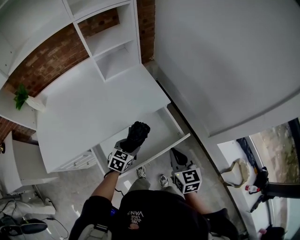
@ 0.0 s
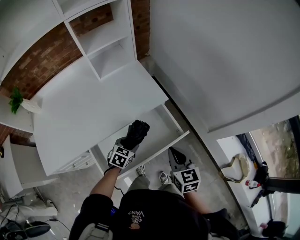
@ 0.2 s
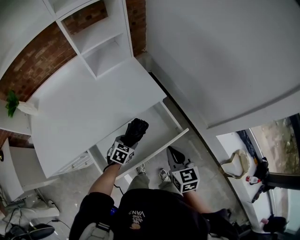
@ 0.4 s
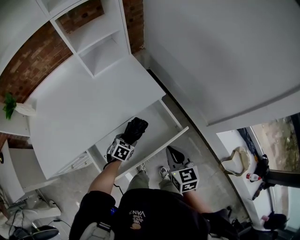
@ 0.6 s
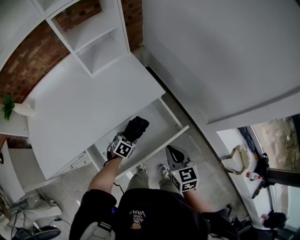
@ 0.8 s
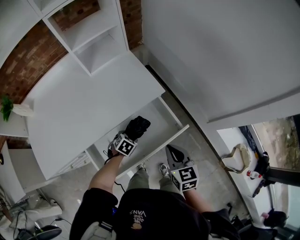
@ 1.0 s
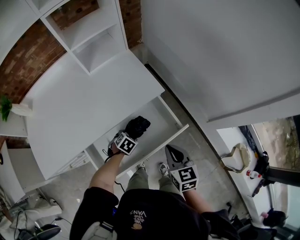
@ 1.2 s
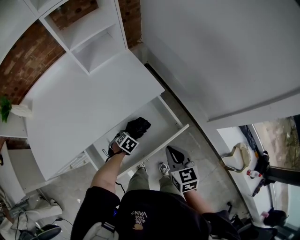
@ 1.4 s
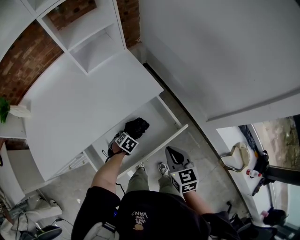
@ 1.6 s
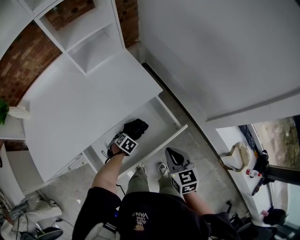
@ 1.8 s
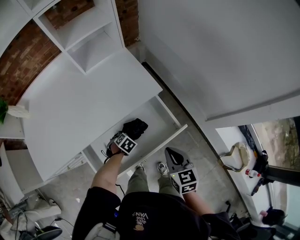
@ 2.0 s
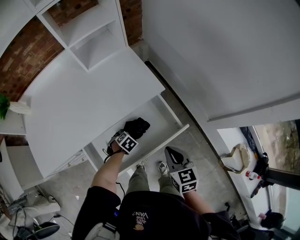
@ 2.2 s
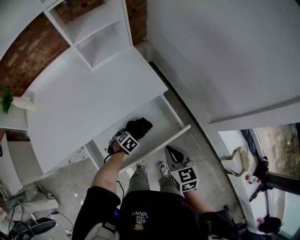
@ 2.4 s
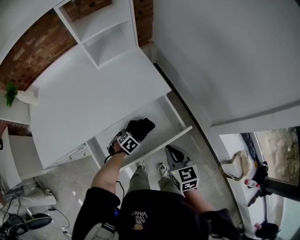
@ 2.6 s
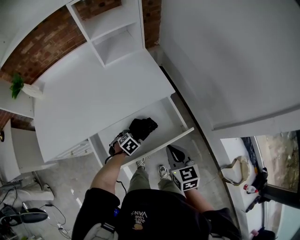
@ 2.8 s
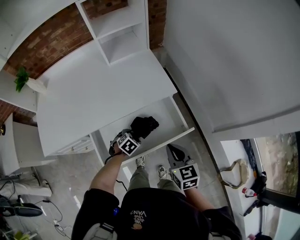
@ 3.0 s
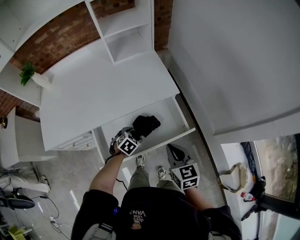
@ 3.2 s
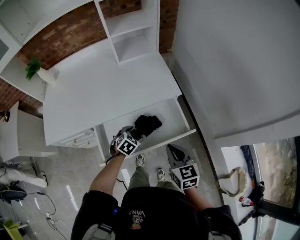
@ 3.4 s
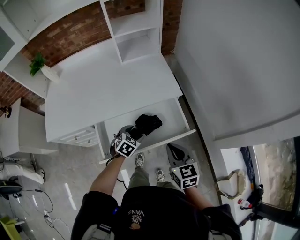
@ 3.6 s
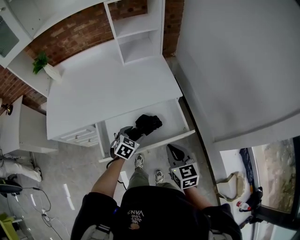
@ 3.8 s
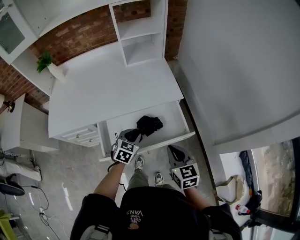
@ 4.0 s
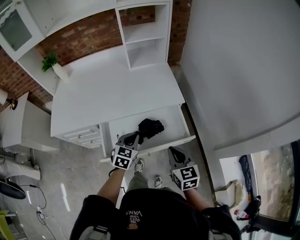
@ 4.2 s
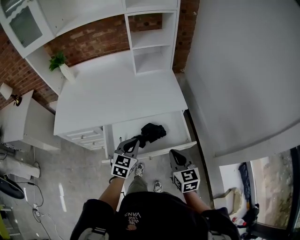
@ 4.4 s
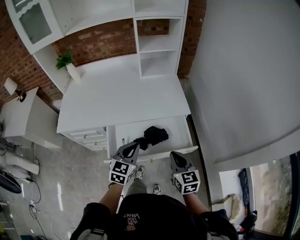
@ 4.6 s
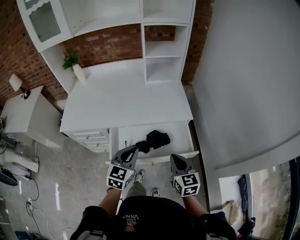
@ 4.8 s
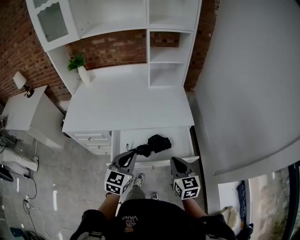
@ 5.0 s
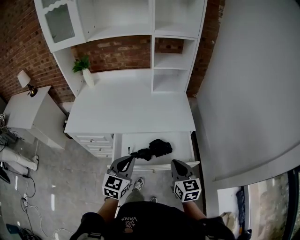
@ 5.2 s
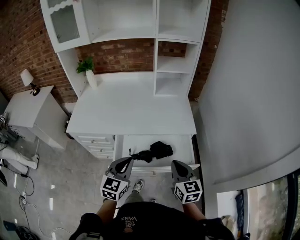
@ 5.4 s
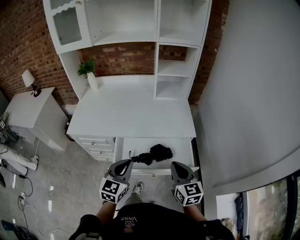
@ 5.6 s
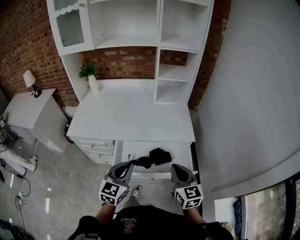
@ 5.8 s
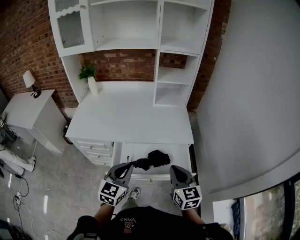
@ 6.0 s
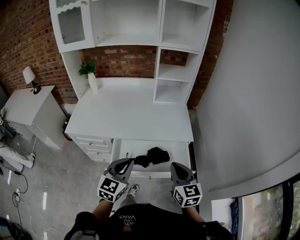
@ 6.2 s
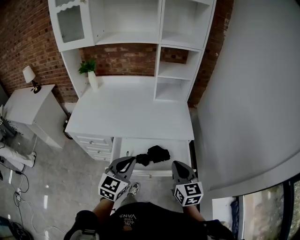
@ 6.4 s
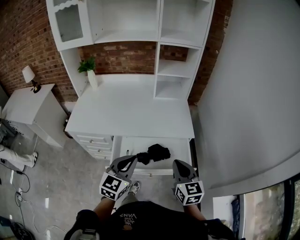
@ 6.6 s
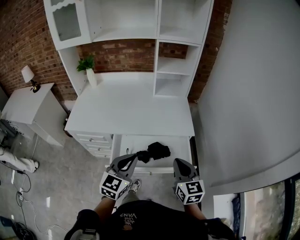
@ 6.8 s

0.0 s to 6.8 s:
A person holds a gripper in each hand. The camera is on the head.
0.0 to 1.4 s: The right gripper travels downward by some 5 cm. The left gripper moves downward, approximately 15 cm, and angles its fingers downward, by some 30 degrees.
1.4 to 2.8 s: There are only small adjustments of the grippers.
2.8 to 4.0 s: The left gripper heads upward, covering approximately 15 cm, angles its fingers upward, by about 30 degrees, and closes its fingers; the right gripper moves about 5 cm.
4.0 to 5.4 s: The left gripper moves upward, backward and to the left, approximately 25 cm, swivels approximately 30 degrees, and closes; the right gripper is displaced upward by roughly 5 cm.
5.4 to 6.8 s: The left gripper changes place by approximately 5 cm.

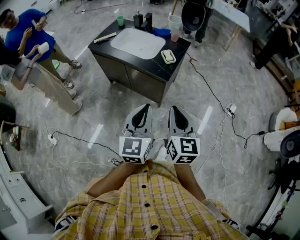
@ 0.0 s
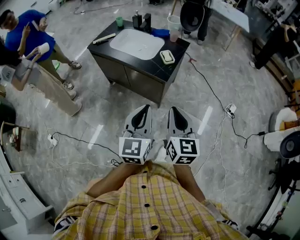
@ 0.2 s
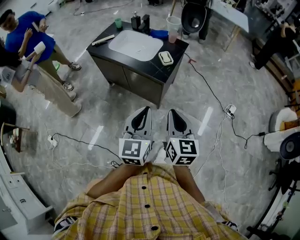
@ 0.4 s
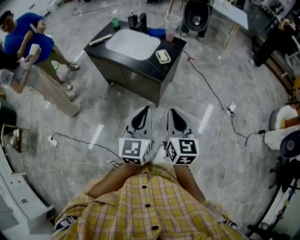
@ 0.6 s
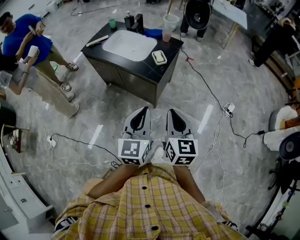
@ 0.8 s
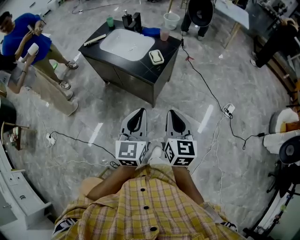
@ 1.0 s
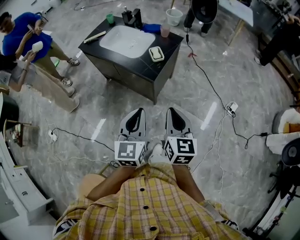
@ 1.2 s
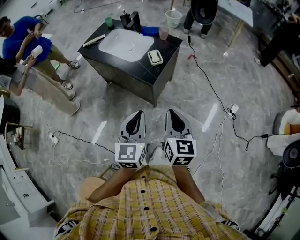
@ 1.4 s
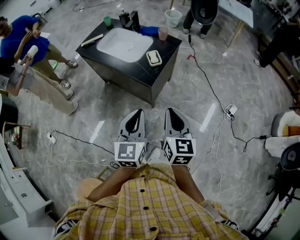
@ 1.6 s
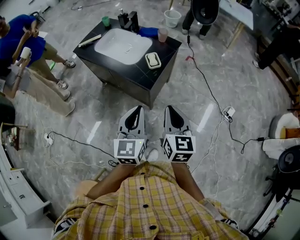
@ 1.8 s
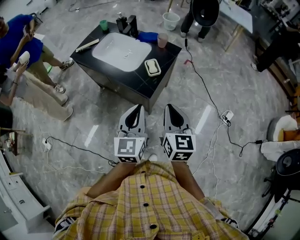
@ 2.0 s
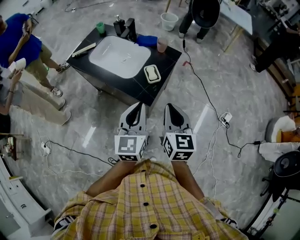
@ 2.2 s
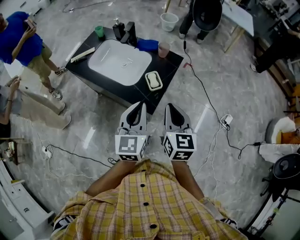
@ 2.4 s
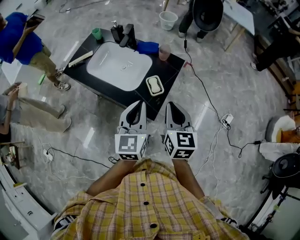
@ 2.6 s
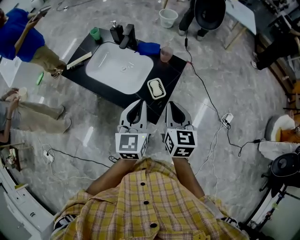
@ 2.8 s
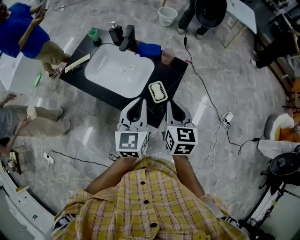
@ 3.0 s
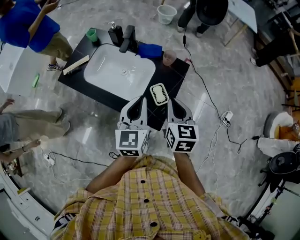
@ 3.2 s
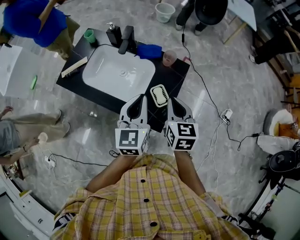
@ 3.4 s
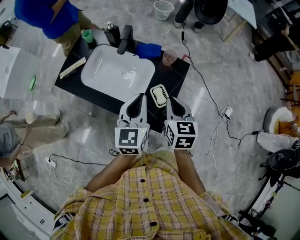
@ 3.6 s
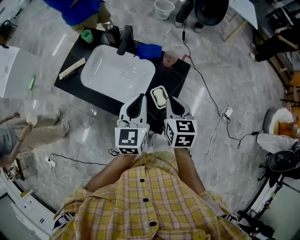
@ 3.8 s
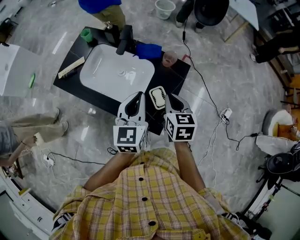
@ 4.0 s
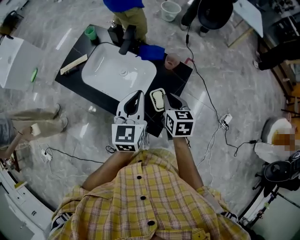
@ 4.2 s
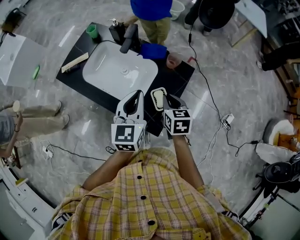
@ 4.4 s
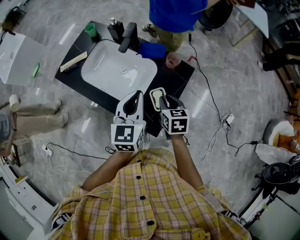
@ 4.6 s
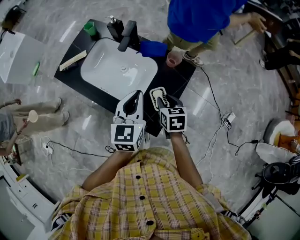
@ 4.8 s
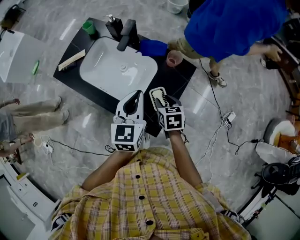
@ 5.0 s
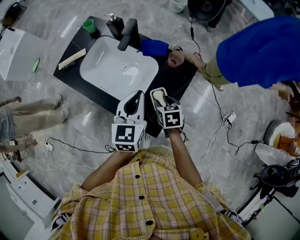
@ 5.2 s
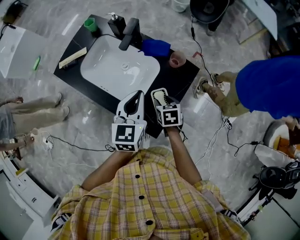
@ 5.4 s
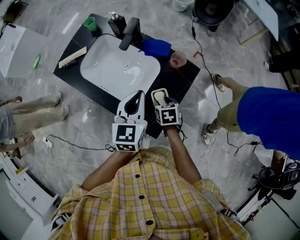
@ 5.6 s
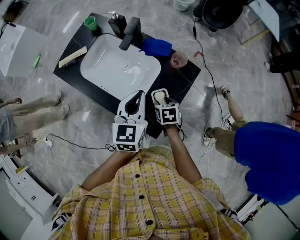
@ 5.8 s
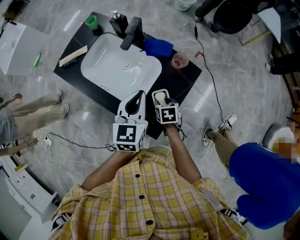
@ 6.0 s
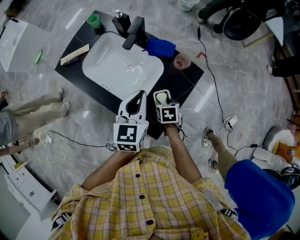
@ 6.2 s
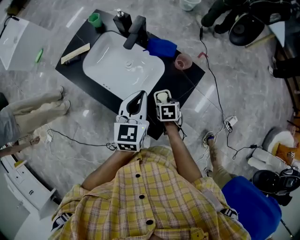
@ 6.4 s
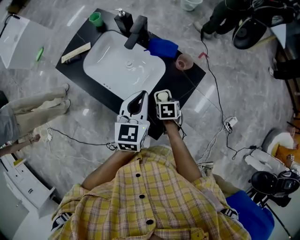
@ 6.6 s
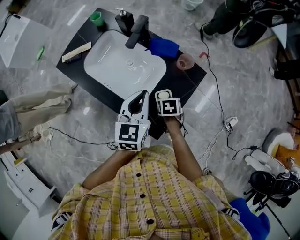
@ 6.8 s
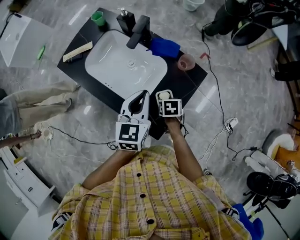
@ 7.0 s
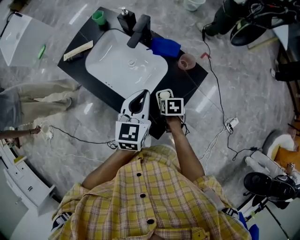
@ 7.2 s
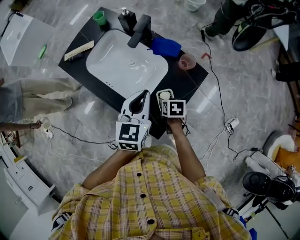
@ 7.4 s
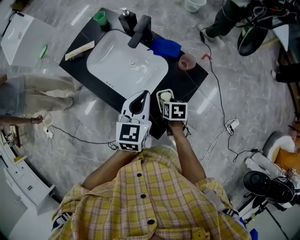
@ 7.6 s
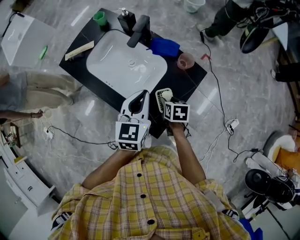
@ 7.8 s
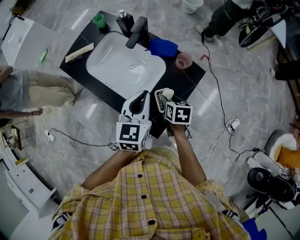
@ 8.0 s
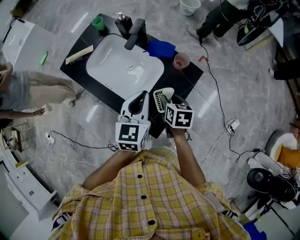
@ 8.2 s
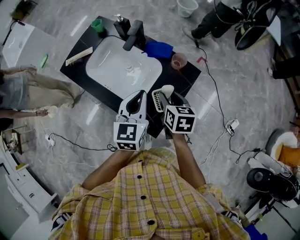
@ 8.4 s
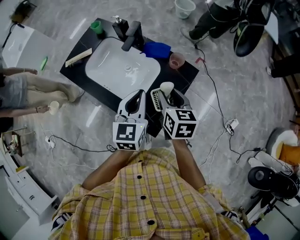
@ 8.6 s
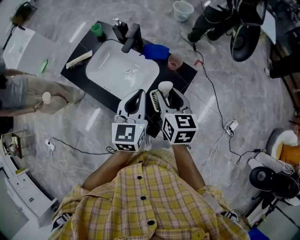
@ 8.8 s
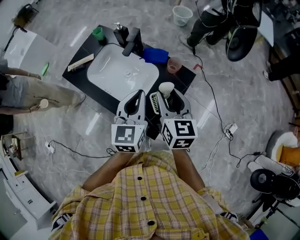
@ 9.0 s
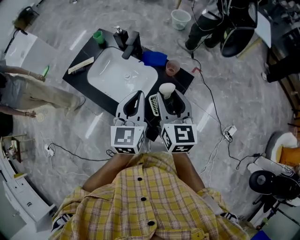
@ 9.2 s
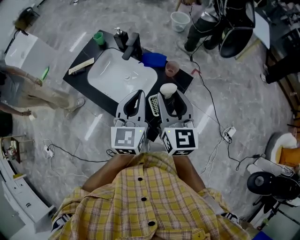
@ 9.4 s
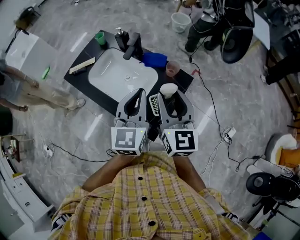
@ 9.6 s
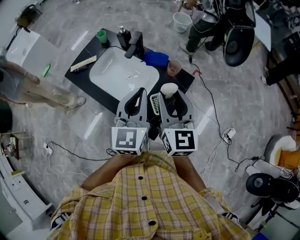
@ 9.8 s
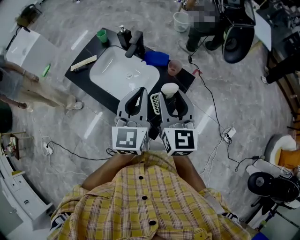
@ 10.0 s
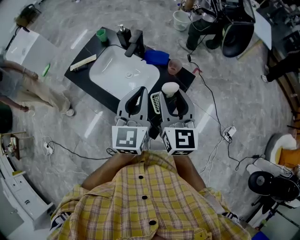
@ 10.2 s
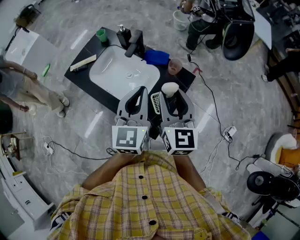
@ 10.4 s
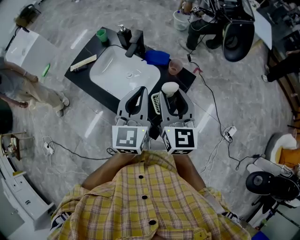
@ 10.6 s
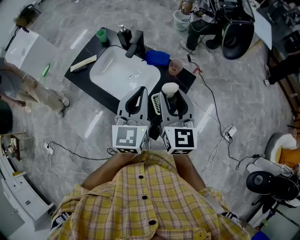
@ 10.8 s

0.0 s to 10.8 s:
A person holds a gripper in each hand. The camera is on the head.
0.0 to 1.6 s: The grippers both shift to the right and forward by about 15 cm.
1.6 to 3.0 s: The grippers both shift forward by roughly 35 cm.
3.0 to 4.6 s: The right gripper travels downward and forward by some 20 cm, and turns by about 20 degrees. The left gripper shifts about 10 cm forward.
4.6 to 6.2 s: The right gripper is displaced downward by some 15 cm, changes its angle by some 20 degrees, and opens its fingers. The left gripper moves about 5 cm.
6.2 to 7.8 s: The grippers move only a little.
7.8 to 9.2 s: The right gripper shifts roughly 30 cm upward, and points its fingers approximately 50 degrees further upward. The left gripper goes approximately 10 cm upward.
9.2 to 10.8 s: The grippers stay close to where they were, moving slightly.

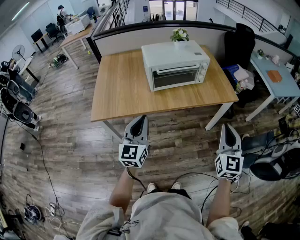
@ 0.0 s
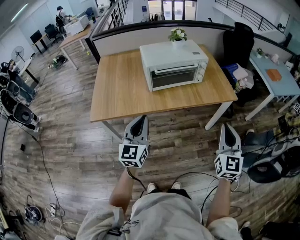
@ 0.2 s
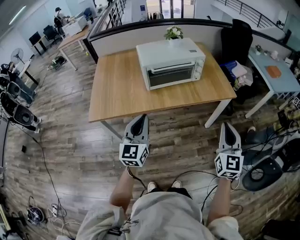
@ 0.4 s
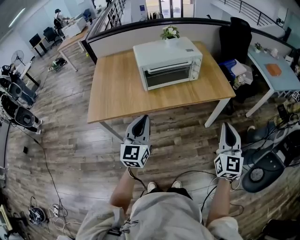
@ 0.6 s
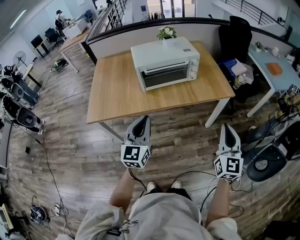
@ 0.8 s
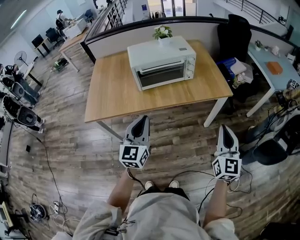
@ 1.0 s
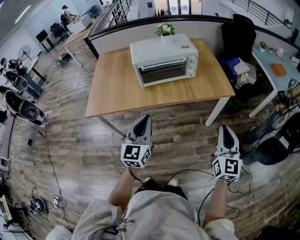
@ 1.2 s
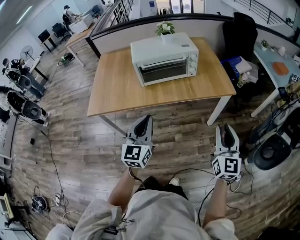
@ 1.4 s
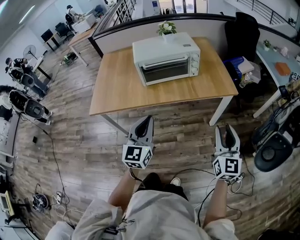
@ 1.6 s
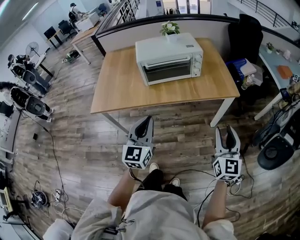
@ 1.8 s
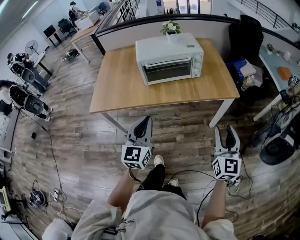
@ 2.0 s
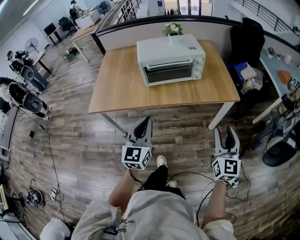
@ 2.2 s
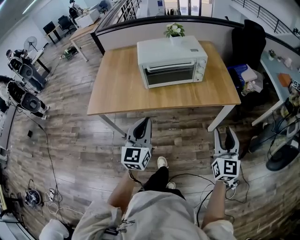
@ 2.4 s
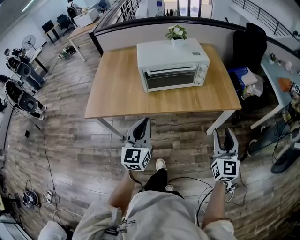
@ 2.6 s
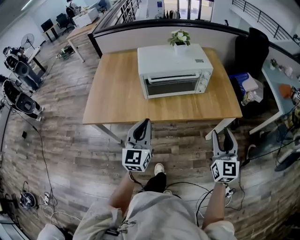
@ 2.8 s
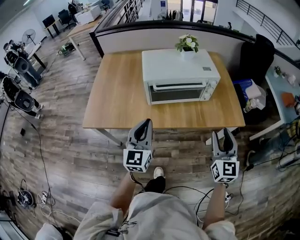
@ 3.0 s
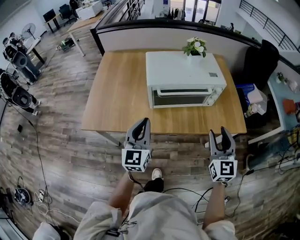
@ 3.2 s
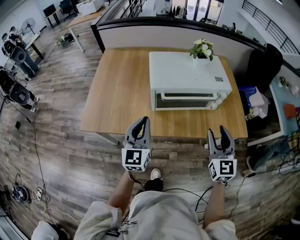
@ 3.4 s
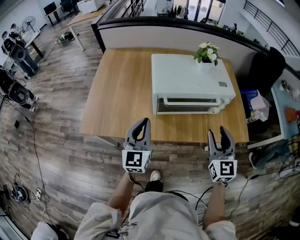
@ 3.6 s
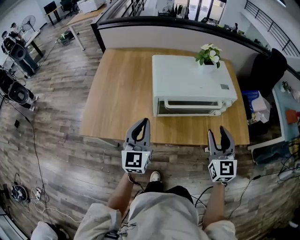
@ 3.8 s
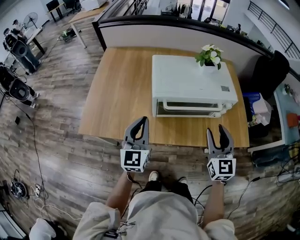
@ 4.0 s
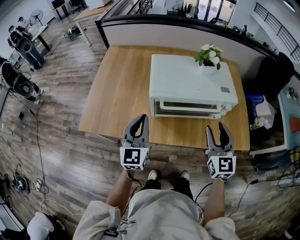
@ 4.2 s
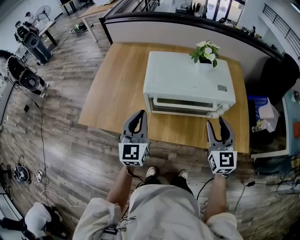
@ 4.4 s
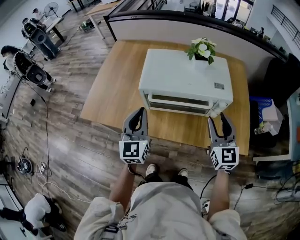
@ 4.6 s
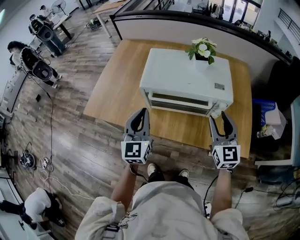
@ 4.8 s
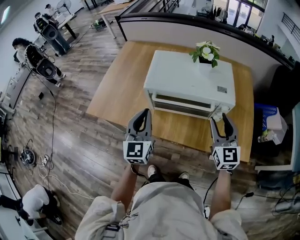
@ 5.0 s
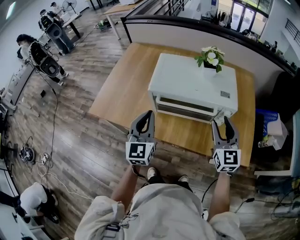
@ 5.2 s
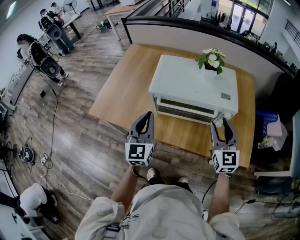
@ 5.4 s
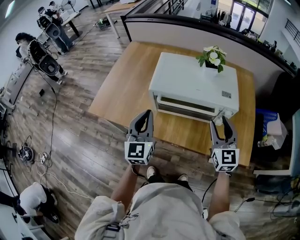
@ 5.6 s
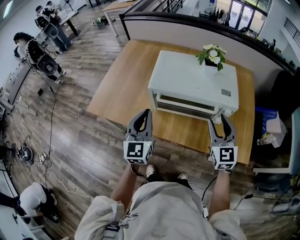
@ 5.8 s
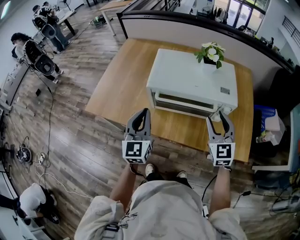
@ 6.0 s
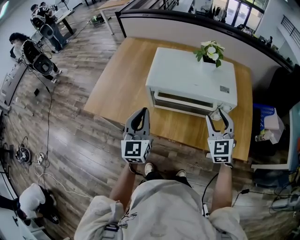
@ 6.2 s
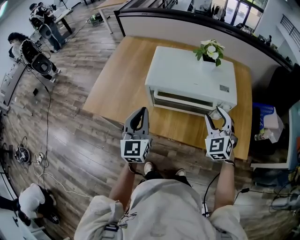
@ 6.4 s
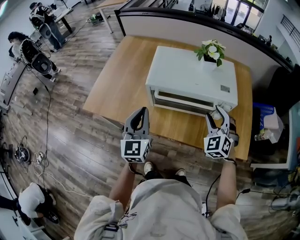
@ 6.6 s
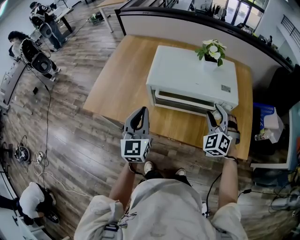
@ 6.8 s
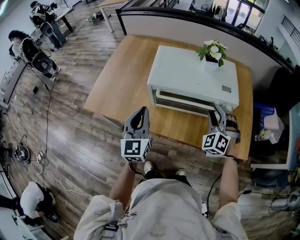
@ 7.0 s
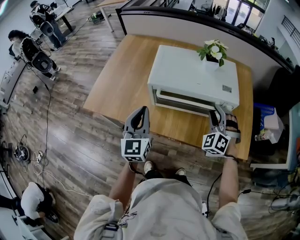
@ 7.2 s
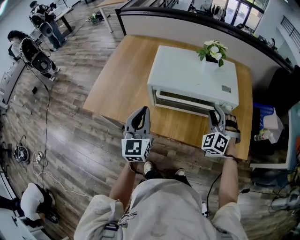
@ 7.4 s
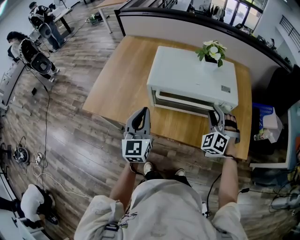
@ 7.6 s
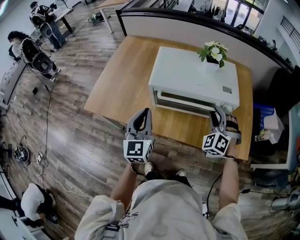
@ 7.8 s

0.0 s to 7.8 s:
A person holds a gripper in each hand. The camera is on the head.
0.0 to 1.6 s: The grippers both shift to the right by roughly 10 cm. The right gripper opens.
1.6 to 3.2 s: The two grippers go about 25 cm forward and to the left.
3.2 to 4.6 s: The right gripper shifts about 15 cm forward. The left gripper moves forward, roughly 10 cm.
4.6 to 6.2 s: The right gripper swivels roughly 20 degrees.
6.2 to 7.8 s: The right gripper rotates approximately 40 degrees.
